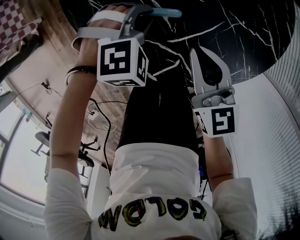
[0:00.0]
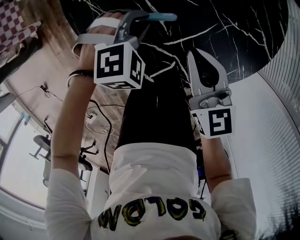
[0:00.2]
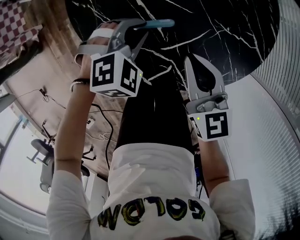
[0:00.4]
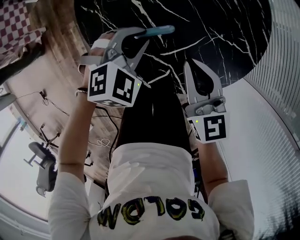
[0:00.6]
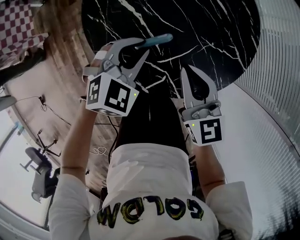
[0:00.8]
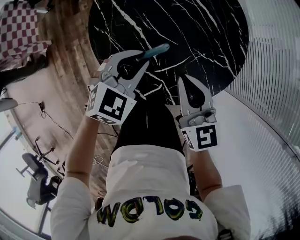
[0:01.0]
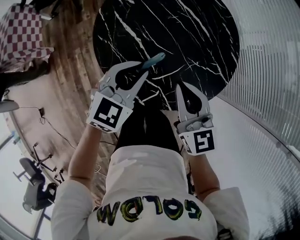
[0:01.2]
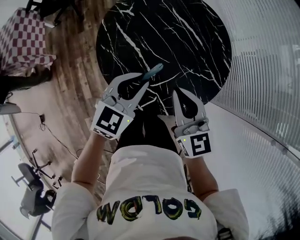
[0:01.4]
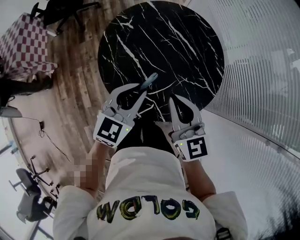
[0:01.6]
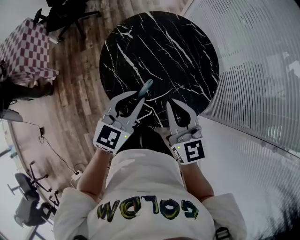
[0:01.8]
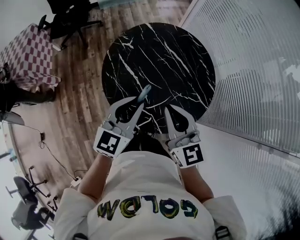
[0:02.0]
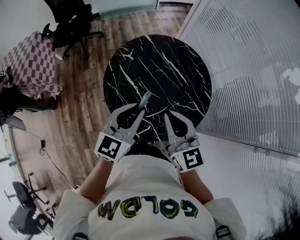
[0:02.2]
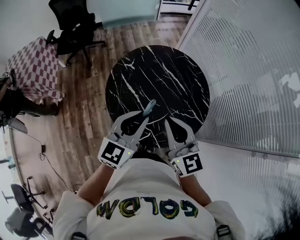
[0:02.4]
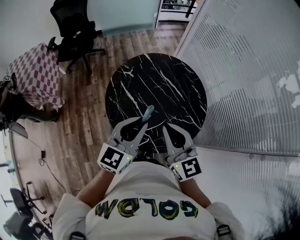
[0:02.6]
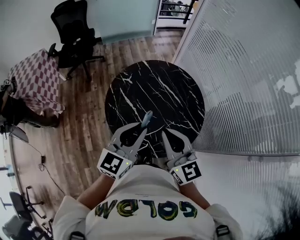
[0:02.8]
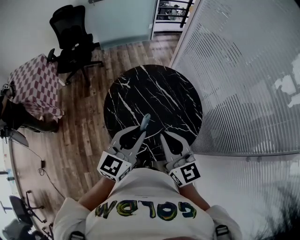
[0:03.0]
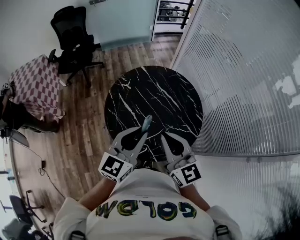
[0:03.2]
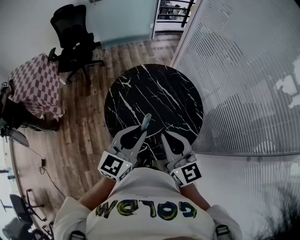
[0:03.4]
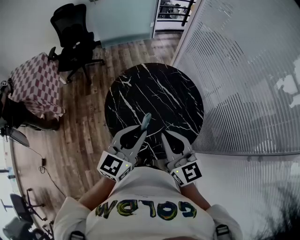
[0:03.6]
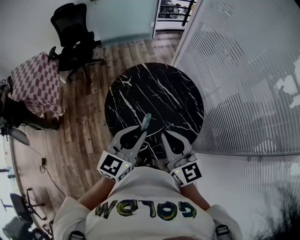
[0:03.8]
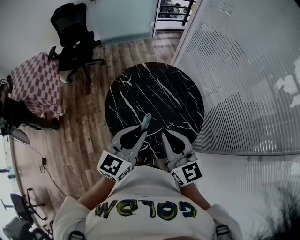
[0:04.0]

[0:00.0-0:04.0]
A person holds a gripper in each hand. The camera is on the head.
0.0 to 1.4 s: Both grippers travel together upward, about 25 cm. The left gripper tips its fingers upward by roughly 40 degrees.
1.4 to 2.6 s: The grippers both shift upward by some 15 cm. The left gripper changes its angle by about 20 degrees.
2.6 to 4.0 s: There are only small adjustments of the grippers.

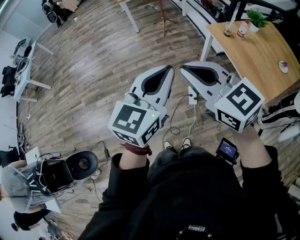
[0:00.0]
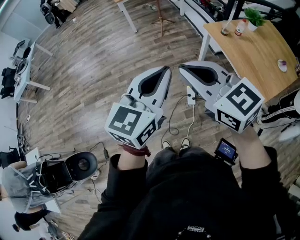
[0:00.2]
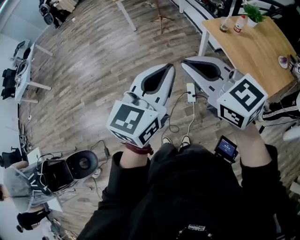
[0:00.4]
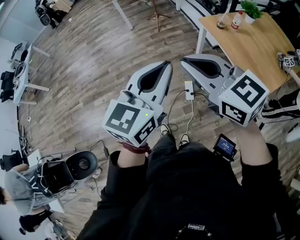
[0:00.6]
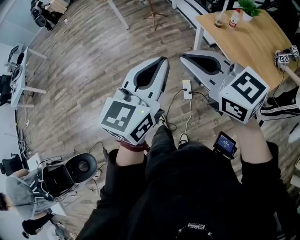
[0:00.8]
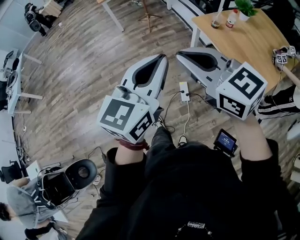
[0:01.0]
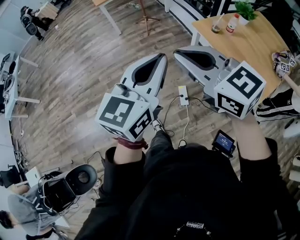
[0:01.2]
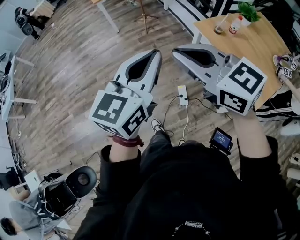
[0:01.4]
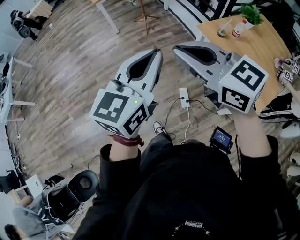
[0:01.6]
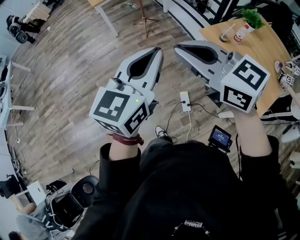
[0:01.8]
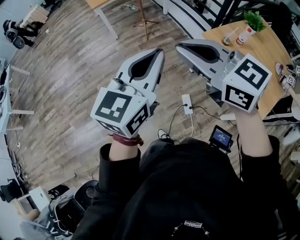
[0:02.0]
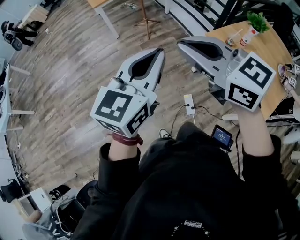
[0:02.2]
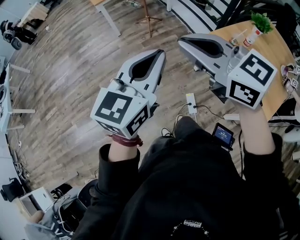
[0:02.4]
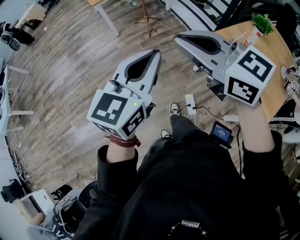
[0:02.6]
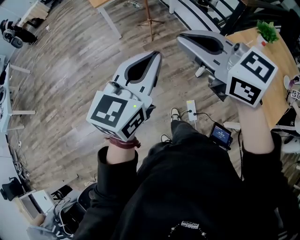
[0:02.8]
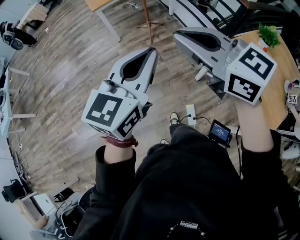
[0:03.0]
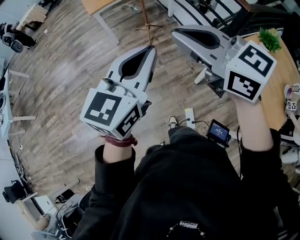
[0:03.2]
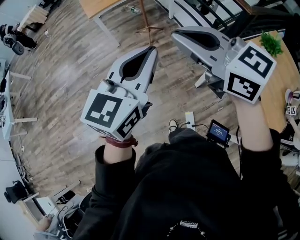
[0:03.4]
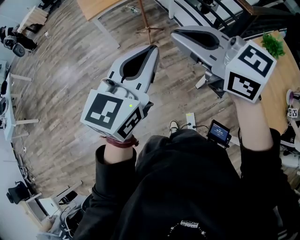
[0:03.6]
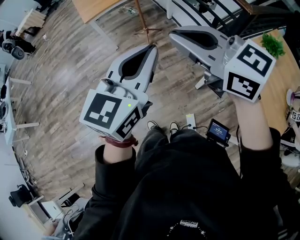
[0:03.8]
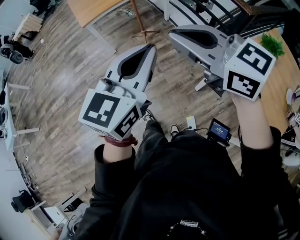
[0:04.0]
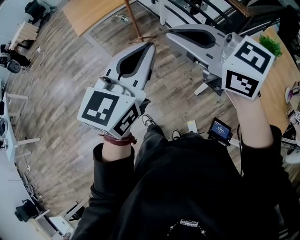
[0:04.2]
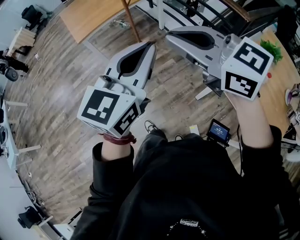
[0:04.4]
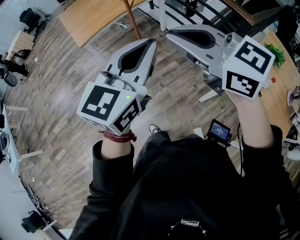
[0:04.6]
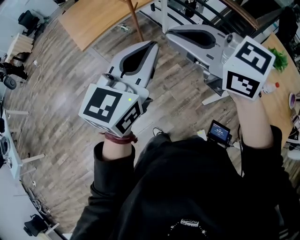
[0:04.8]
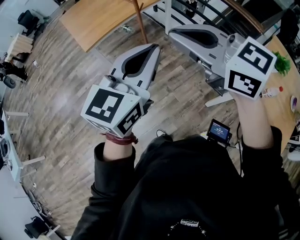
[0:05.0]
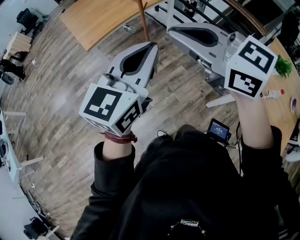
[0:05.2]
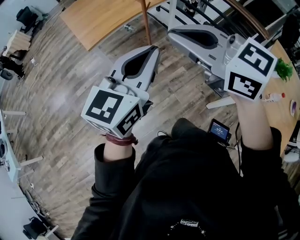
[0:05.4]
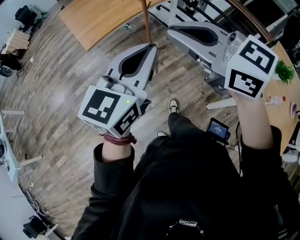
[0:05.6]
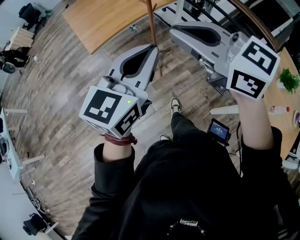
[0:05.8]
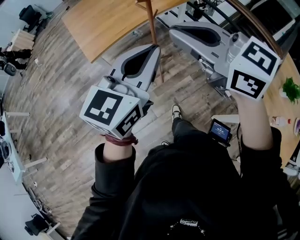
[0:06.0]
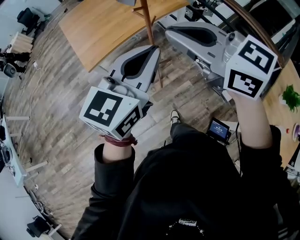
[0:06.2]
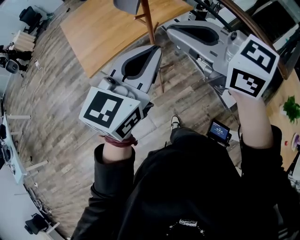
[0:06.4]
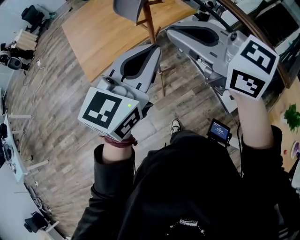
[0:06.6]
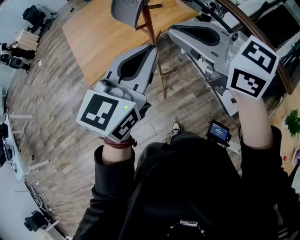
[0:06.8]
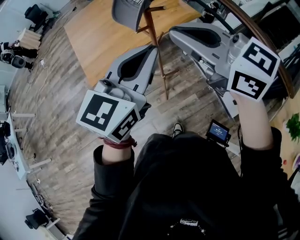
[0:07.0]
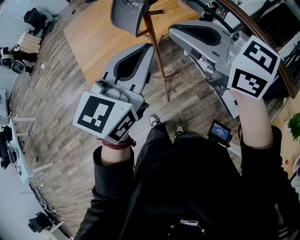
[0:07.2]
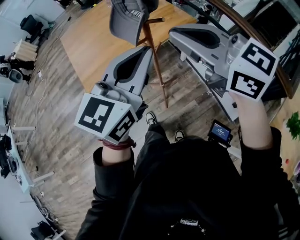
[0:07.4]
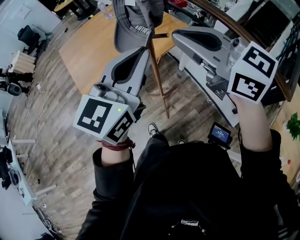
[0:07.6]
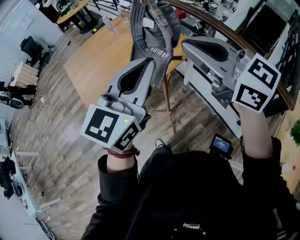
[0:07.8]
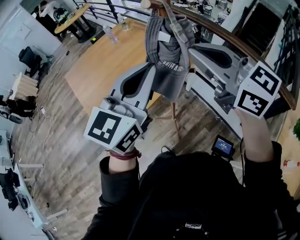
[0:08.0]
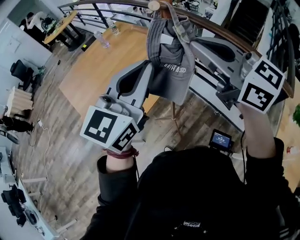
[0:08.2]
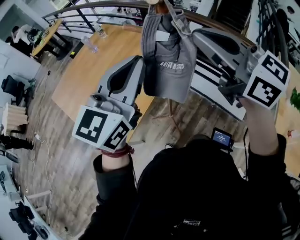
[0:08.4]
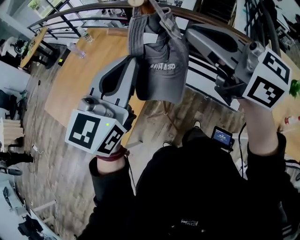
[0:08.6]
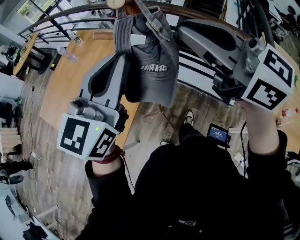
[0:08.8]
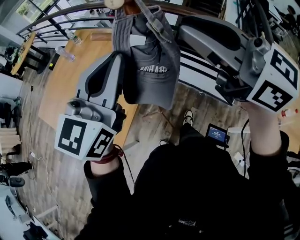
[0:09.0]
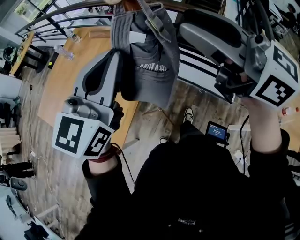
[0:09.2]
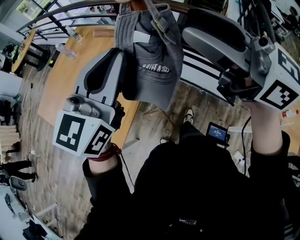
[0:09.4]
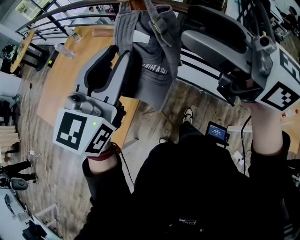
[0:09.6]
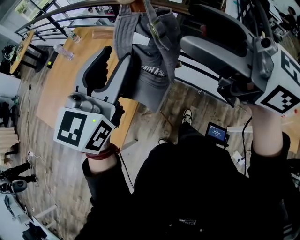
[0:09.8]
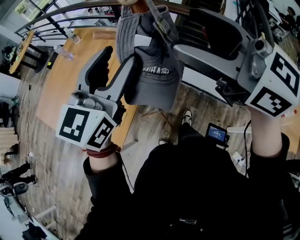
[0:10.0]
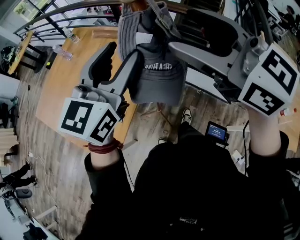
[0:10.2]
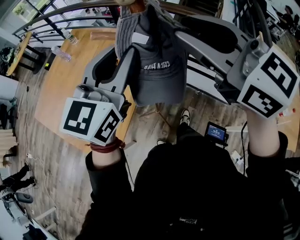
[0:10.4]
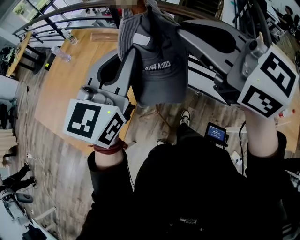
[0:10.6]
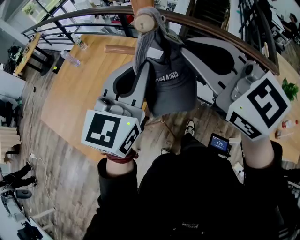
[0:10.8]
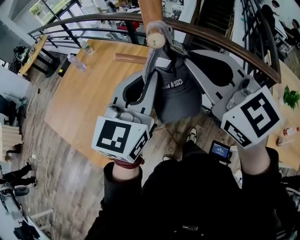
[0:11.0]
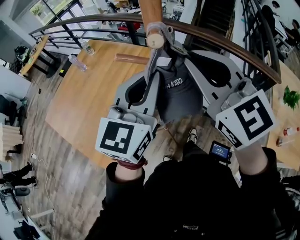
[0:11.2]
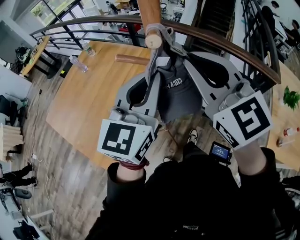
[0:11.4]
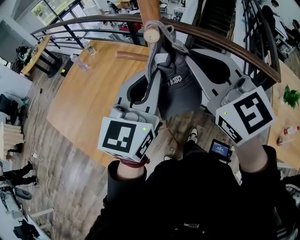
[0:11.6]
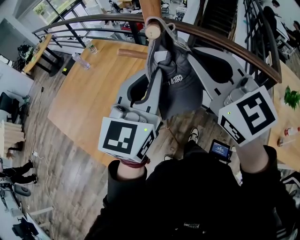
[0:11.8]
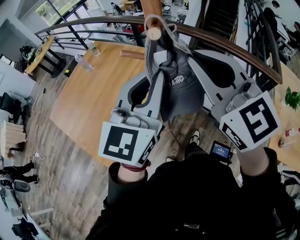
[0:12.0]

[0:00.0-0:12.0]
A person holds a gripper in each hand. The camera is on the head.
0.0 to 1.6 s: Both grippers move forward, approximately 25 cm.
1.6 to 3.0 s: The left gripper moves to the left and forward, approximately 10 cm, while the right gripper shifts about 10 cm forward and to the left.
3.0 to 4.4 s: Both grippers travel together to the right and upward, some 10 cm.
4.4 to 6.0 s: Both grippers travel together to the right, approximately 5 cm.
6.0 to 7.6 s: Both grippers move to the right and backward, approximately 20 cm.
7.6 to 9.0 s: The right gripper shifts by approximately 5 cm, and turns by some 30 degrees; the left gripper shifts by approximately 10 cm, and changes its angle by some 20 degrees.
9.0 to 10.4 s: The left gripper opens, while the right gripper opens and closes again.
10.4 to 12.0 s: The left gripper ends up about 5 cm from where it was.

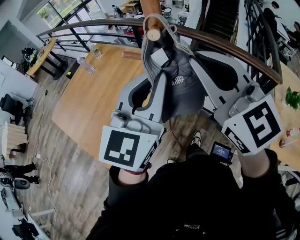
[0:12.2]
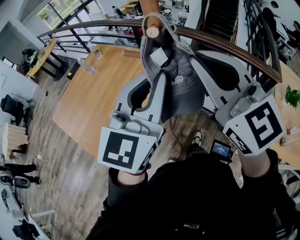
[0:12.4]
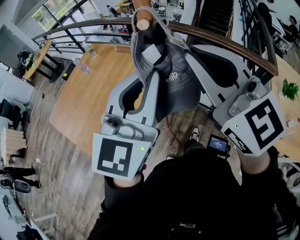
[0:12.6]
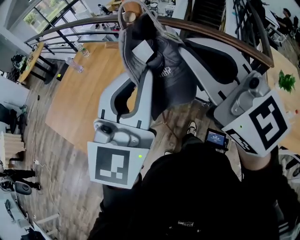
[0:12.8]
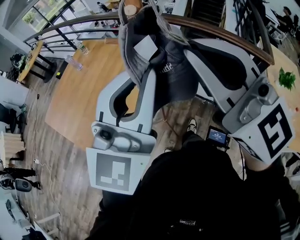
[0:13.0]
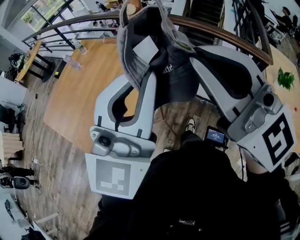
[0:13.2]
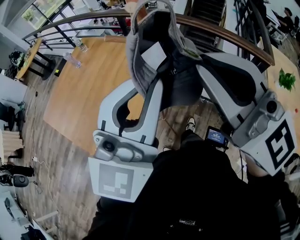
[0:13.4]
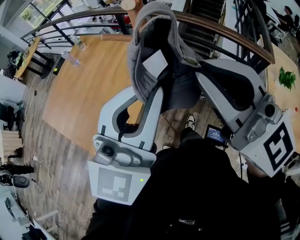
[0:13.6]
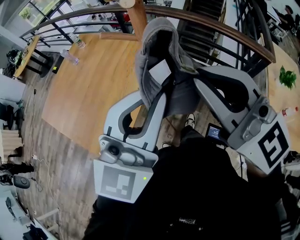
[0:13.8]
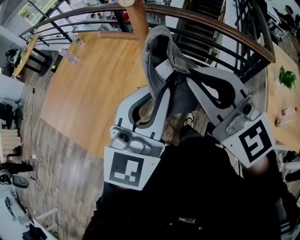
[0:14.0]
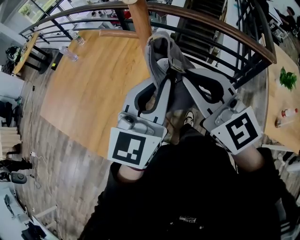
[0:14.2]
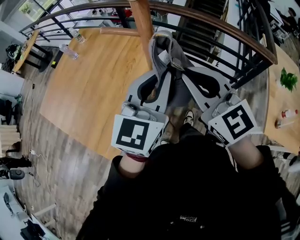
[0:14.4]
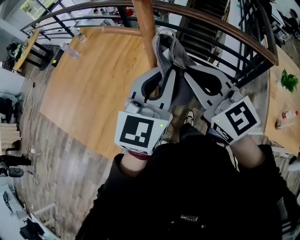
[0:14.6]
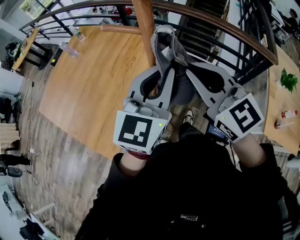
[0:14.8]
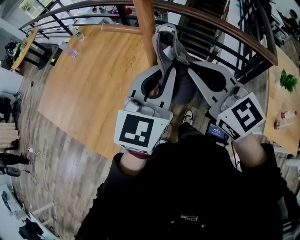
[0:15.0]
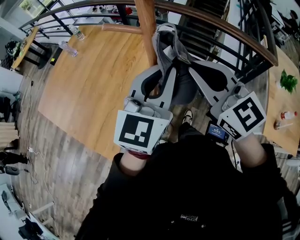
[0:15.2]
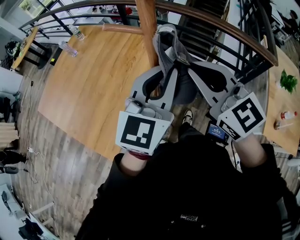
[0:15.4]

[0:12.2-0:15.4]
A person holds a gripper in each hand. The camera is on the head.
12.2 to 13.8 s: The grippers both shift backward by approximately 5 cm.
13.8 to 15.4 s: Both grippers travel together downward and forward, approximately 10 cm.

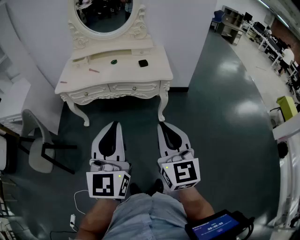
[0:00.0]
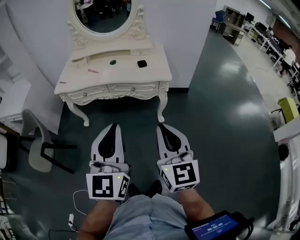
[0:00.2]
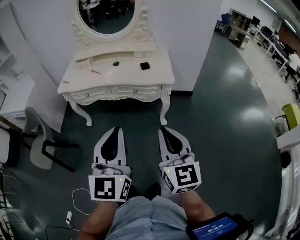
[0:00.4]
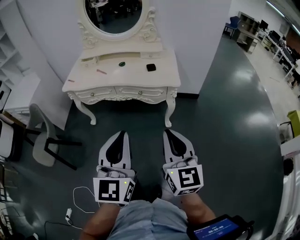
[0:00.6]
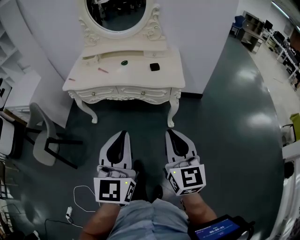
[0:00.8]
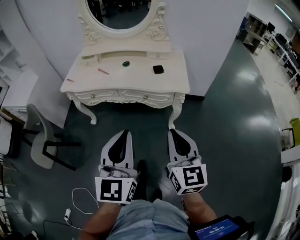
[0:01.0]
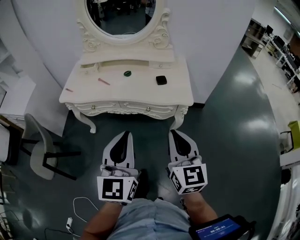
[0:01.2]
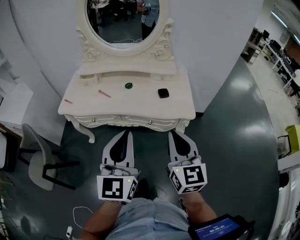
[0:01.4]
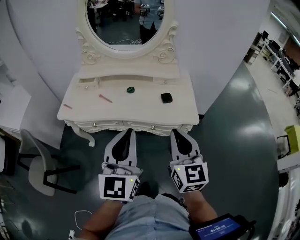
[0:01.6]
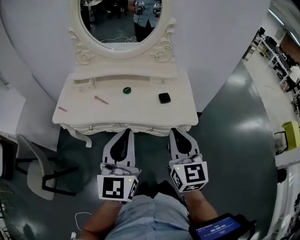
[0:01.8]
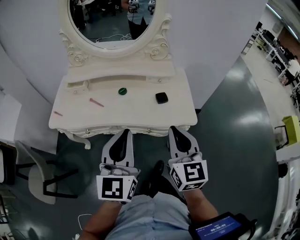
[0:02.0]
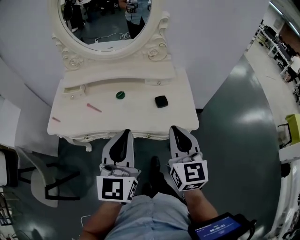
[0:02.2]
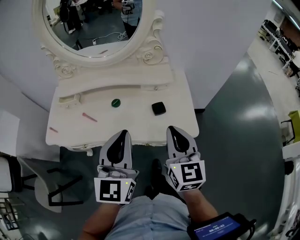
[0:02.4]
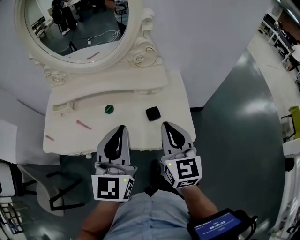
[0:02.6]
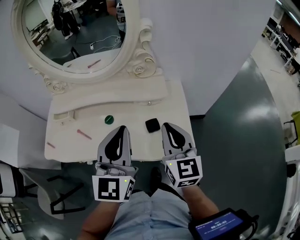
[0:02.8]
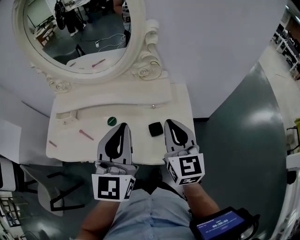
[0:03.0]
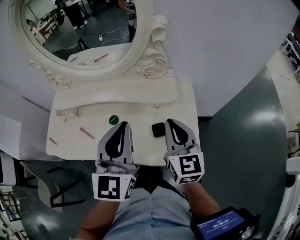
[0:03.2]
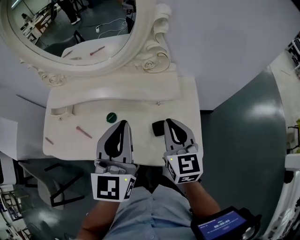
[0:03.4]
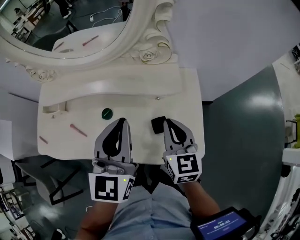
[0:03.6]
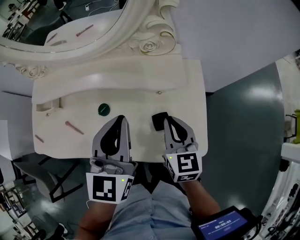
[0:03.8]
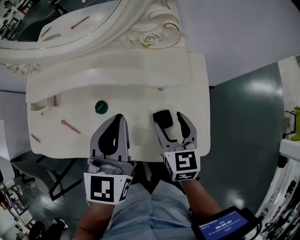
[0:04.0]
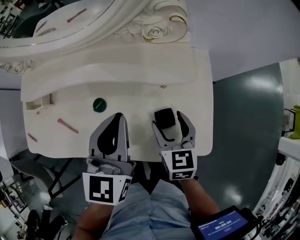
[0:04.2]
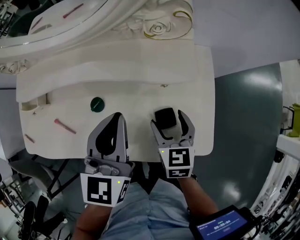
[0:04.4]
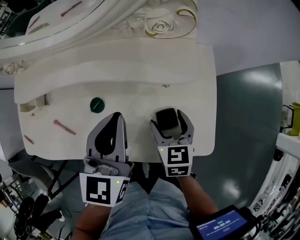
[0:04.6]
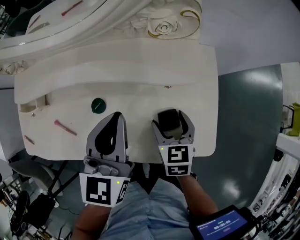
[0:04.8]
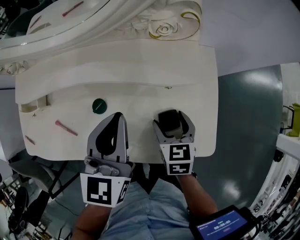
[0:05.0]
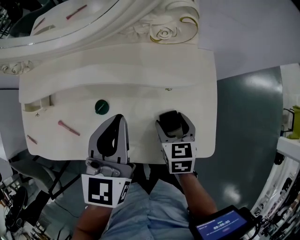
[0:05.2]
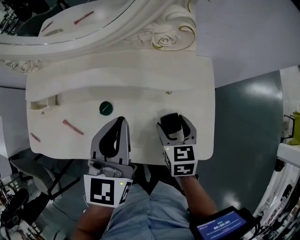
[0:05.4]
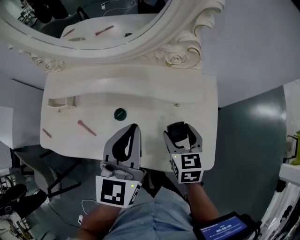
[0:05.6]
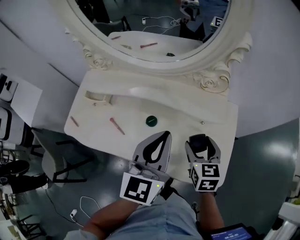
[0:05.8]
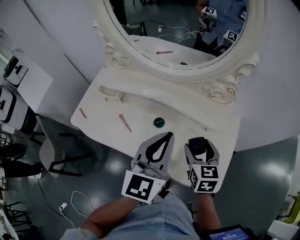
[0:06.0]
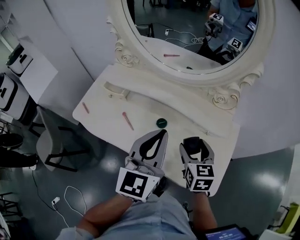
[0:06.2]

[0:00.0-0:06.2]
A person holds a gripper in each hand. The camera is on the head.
0.0 to 1.6 s: Both grippers travel together forward, approximately 30 cm.
1.6 to 3.2 s: The two grippers go about 30 cm forward.
3.2 to 4.6 s: The left gripper shifts roughly 15 cm downward and forward, and changes its angle by roughly 20 degrees, while the right gripper travels downward by roughly 20 cm, tips its fingers downward by some 40 degrees, and opens its fingers.
4.6 to 6.2 s: The right gripper heads upward and to the left, covering some 15 cm, and turns by about 20 degrees; the left gripper heads upward, backward and to the left, covering about 15 cm, and swivels approximately 30 degrees.
